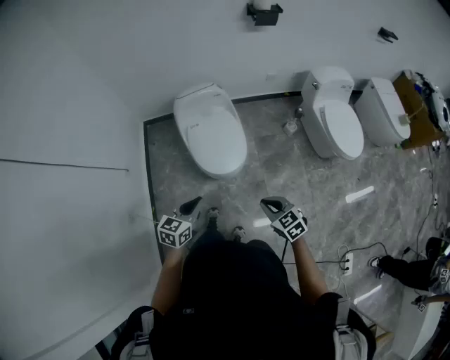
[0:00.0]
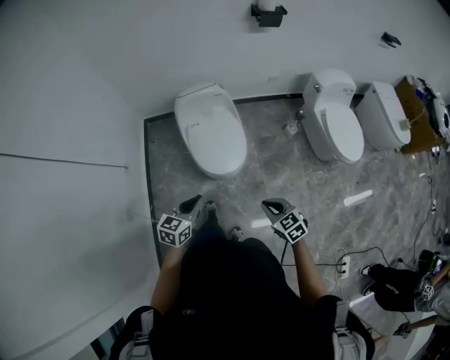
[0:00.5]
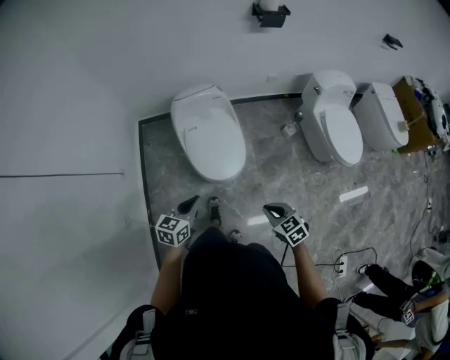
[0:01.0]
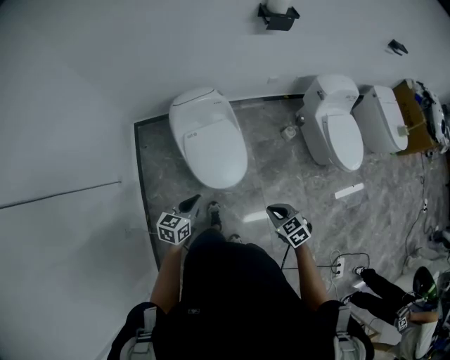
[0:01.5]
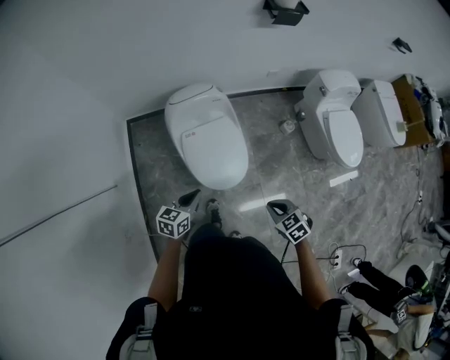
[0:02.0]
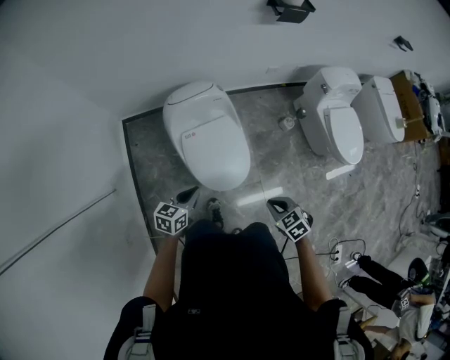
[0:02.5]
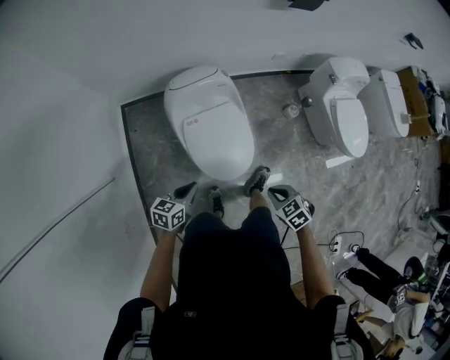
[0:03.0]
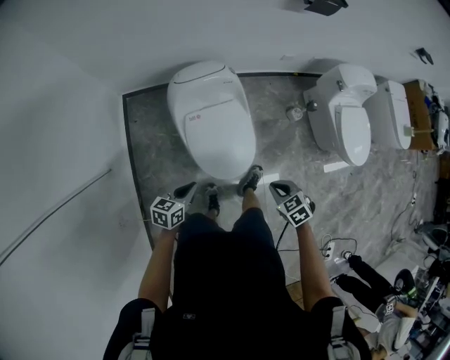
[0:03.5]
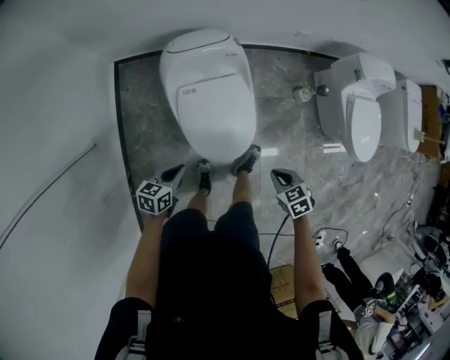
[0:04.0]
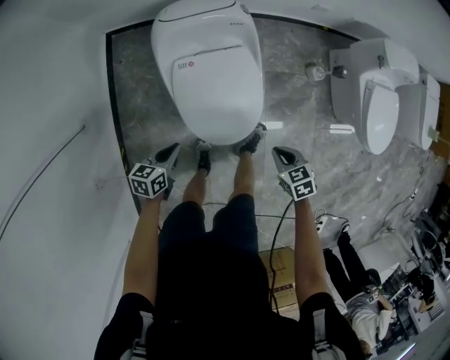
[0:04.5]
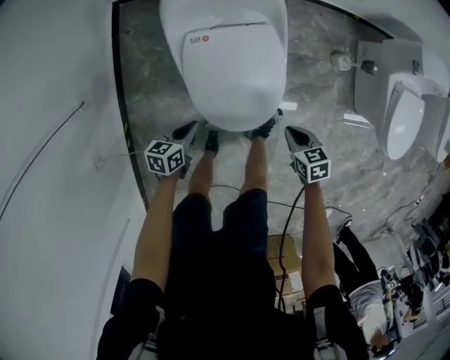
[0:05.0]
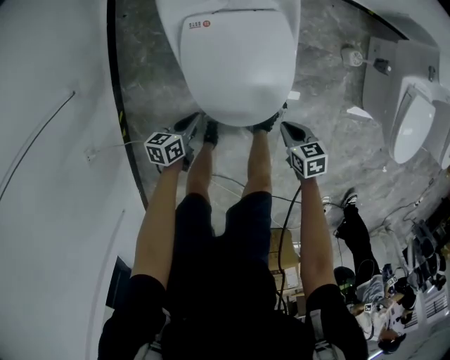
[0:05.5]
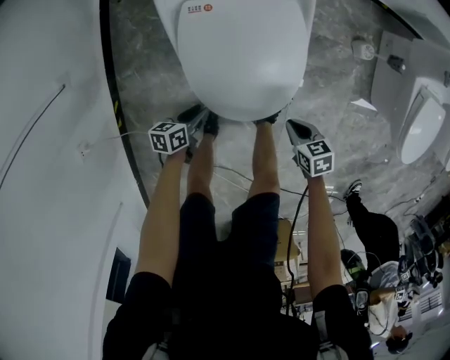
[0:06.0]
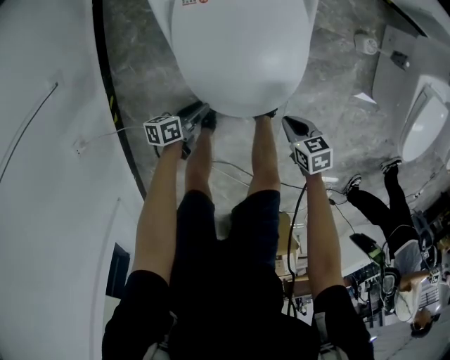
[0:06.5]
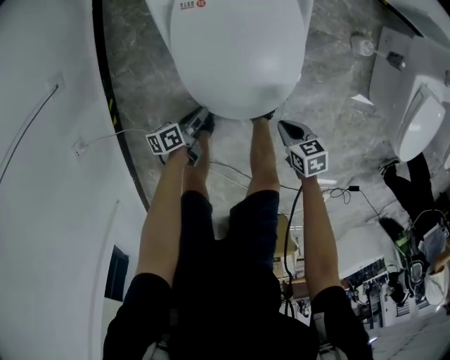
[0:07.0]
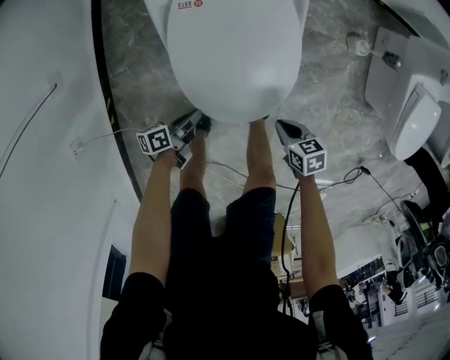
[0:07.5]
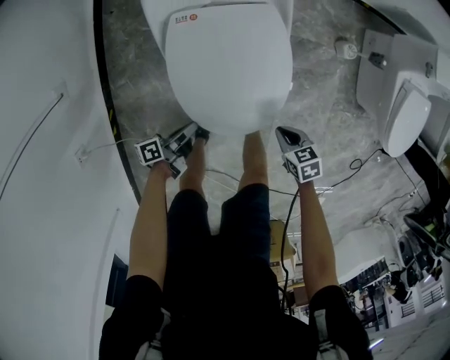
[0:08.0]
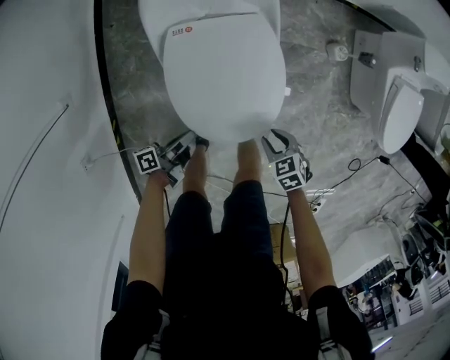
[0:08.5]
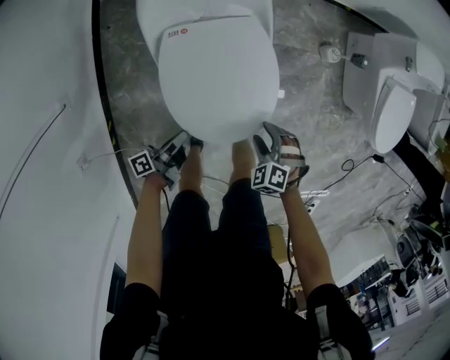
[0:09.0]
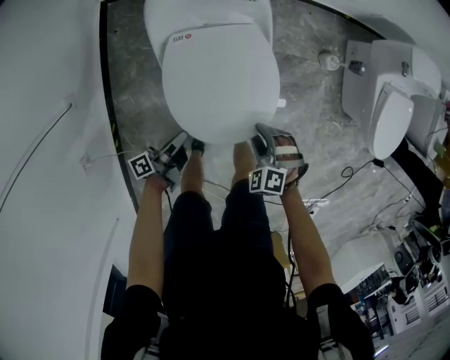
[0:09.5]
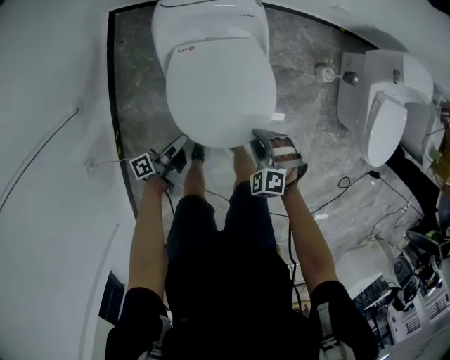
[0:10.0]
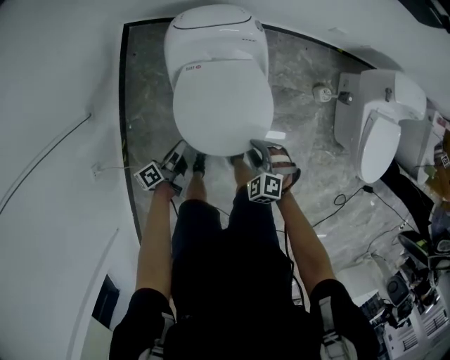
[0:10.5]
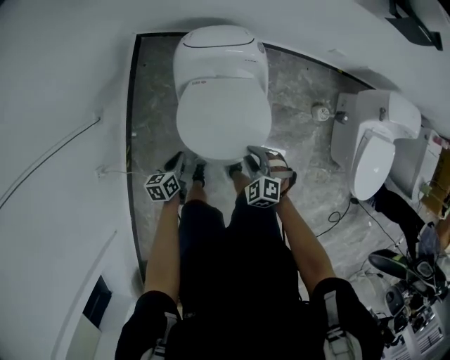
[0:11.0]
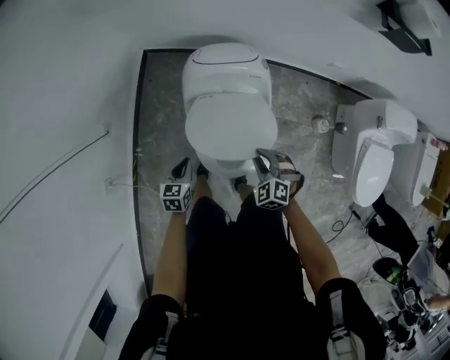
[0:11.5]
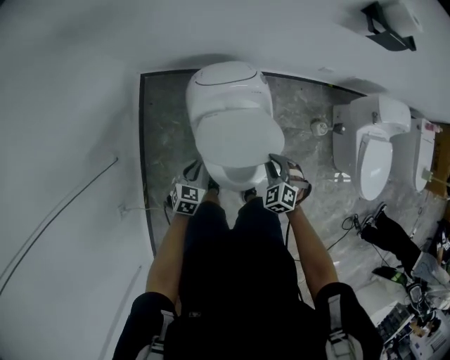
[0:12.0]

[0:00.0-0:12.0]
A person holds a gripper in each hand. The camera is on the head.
0:00.0 to 0:02.0: The grippers both shift forward by some 20 cm.
0:02.0 to 0:04.0: The left gripper moves downward, roughly 15 cm, while the right gripper goes roughly 20 cm downward and forward.
0:04.0 to 0:06.0: The grippers both shift downward by about 30 cm. The left gripper changes its angle by about 30 degrees, and opens up.
0:06.0 to 0:08.0: The left gripper moves upward, roughly 10 cm, changes its angle by about 40 degrees, and closes.
0:08.0 to 0:10.0: The right gripper travels upward, forward and to the left by some 15 cm, rolls counterclockwise, seen from behind, by roughly 60 degrees, and opens. The left gripper heads upward and forward, covering some 15 cm.
0:10.0 to 0:12.0: The left gripper heads forward, upward and to the left, covering about 15 cm, and rolls clockwise, seen from behind, by approximately 90 degrees, while the right gripper travels forward and upward by approximately 20 cm.

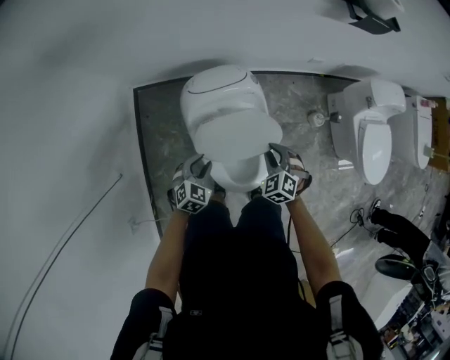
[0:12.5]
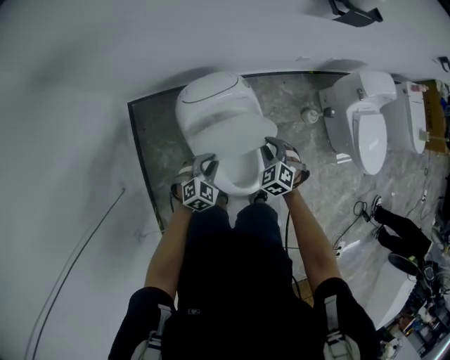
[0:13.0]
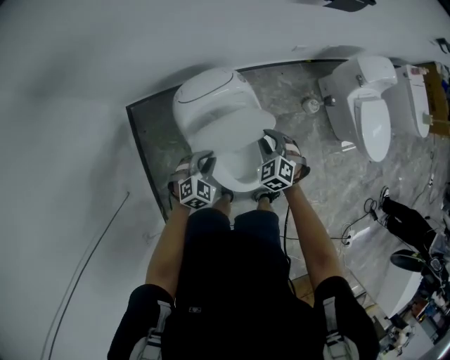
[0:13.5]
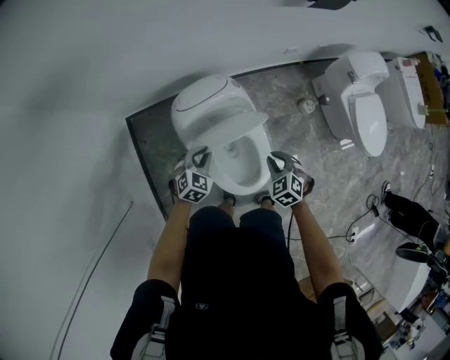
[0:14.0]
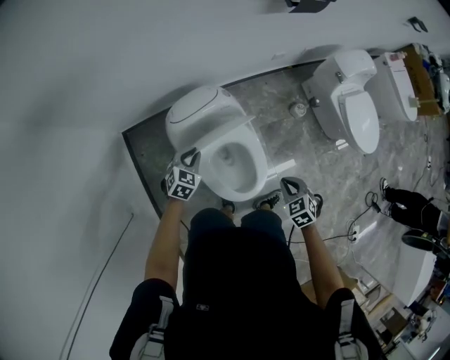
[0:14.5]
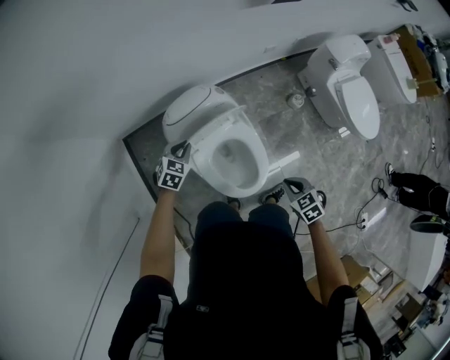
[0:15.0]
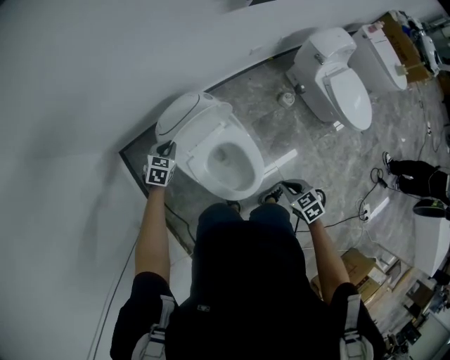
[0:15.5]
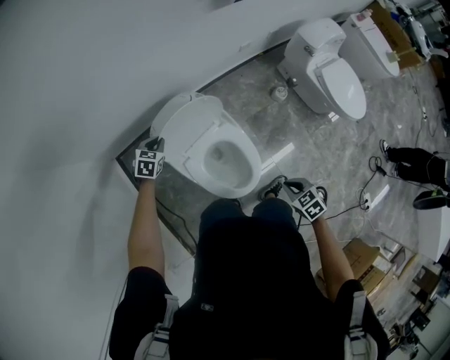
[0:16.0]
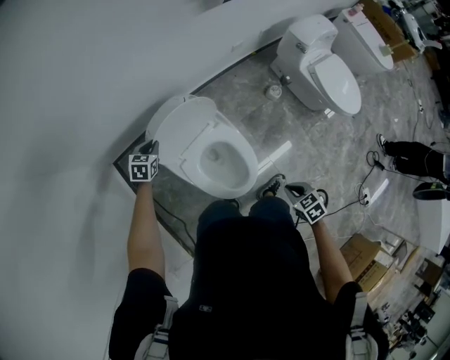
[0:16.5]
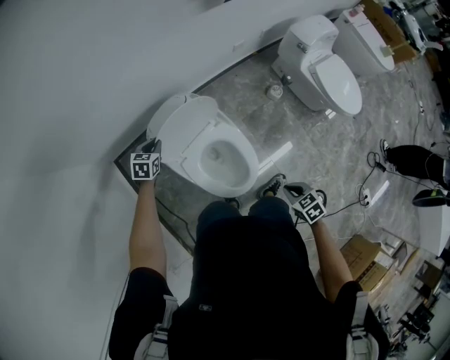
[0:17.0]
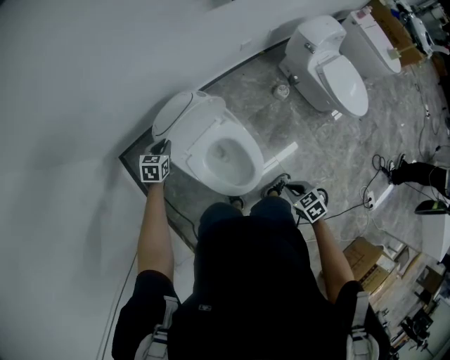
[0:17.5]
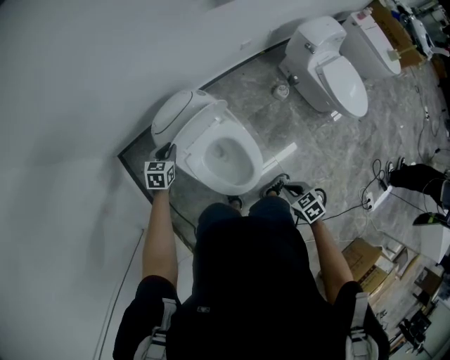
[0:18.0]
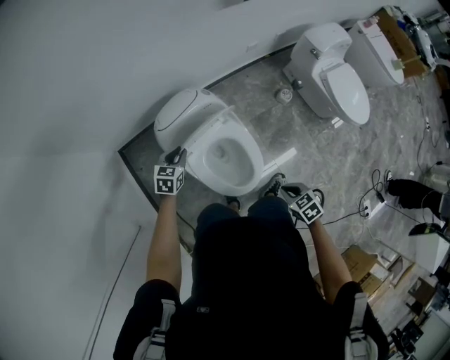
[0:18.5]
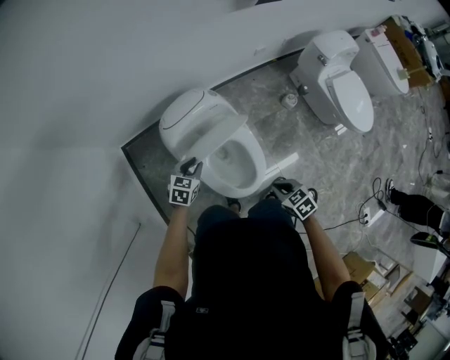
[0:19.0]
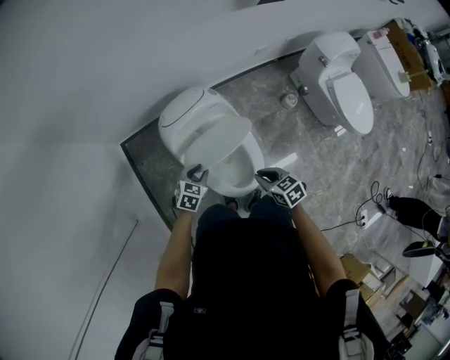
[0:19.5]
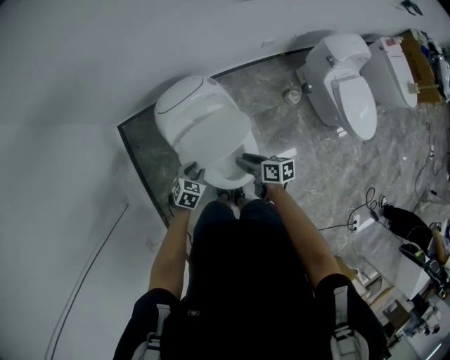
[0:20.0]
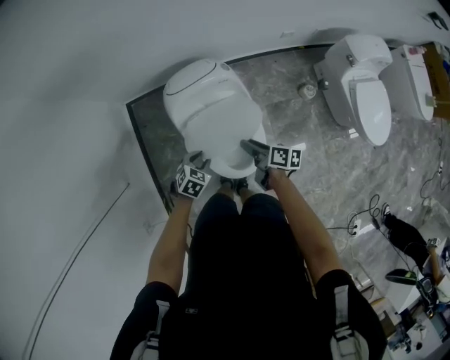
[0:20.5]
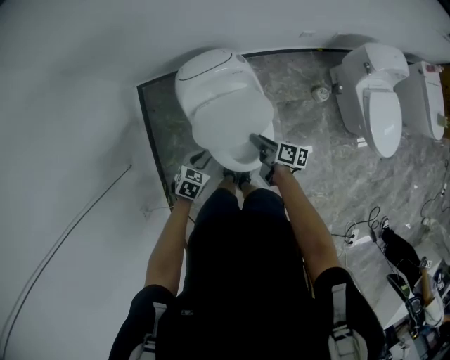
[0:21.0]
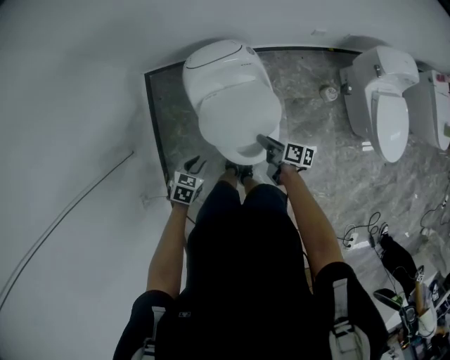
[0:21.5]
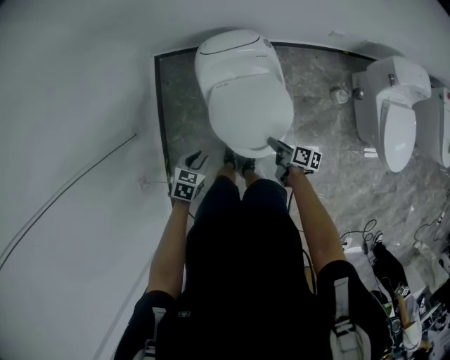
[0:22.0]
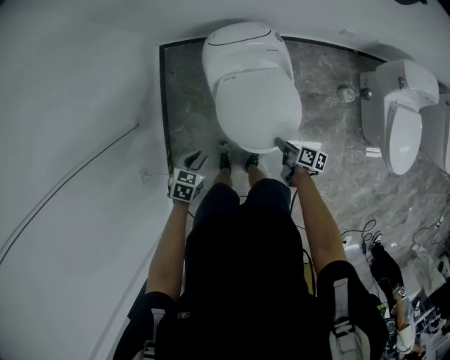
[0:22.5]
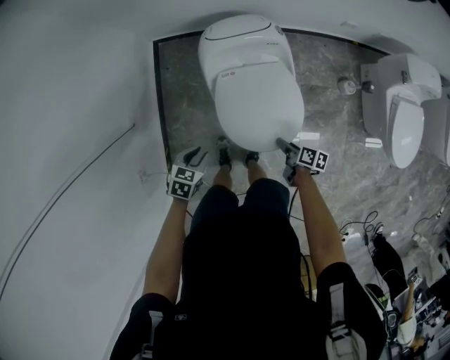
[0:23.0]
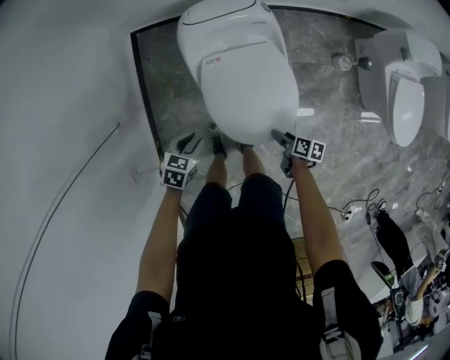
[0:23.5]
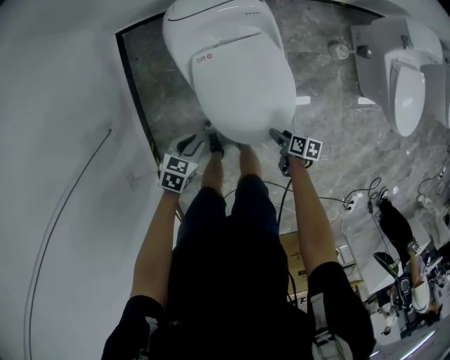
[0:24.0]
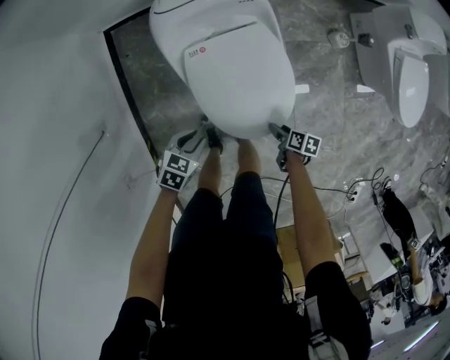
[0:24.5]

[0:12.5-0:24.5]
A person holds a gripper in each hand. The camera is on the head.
0:12.5 to 0:14.5: The left gripper heads forward, covering some 10 cm. The right gripper shifts some 15 cm backward and to the right, and swivels roughly 30 degrees.
0:14.5 to 0:16.5: The left gripper is displaced forward by approximately 10 cm. The right gripper shifts approximately 10 cm backward and to the right, and changes its angle by about 20 degrees.
0:16.5 to 0:18.5: The left gripper heads backward, covering roughly 10 cm.
0:18.5 to 0:20.5: The right gripper travels forward and to the left by approximately 20 cm, tilts its fingers some 30 degrees upward, and opens up; the left gripper goes approximately 15 cm backward and to the right.
0:20.5 to 0:22.5: The left gripper travels backward and to the left by roughly 15 cm, and rotates about 30 degrees. Meanwhile the right gripper moves downward and backward, about 15 cm.
0:22.5 to 0:24.5: The left gripper heads downward, covering about 15 cm, and changes its angle by some 20 degrees, while the right gripper is displaced downward and backward by approximately 20 cm, rotates some 20 degrees, and opens its fingers.

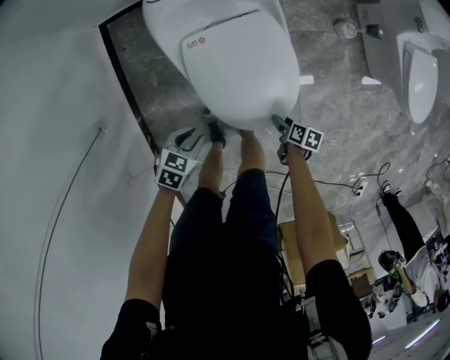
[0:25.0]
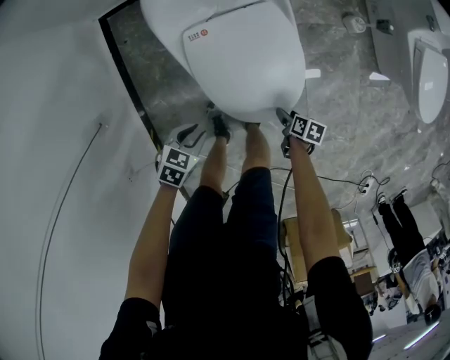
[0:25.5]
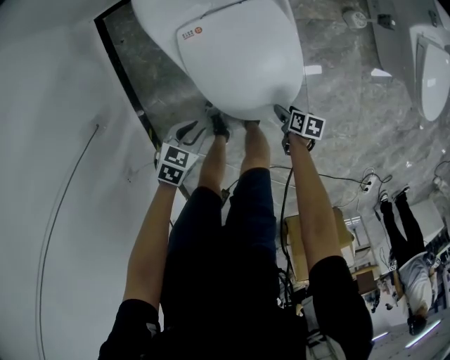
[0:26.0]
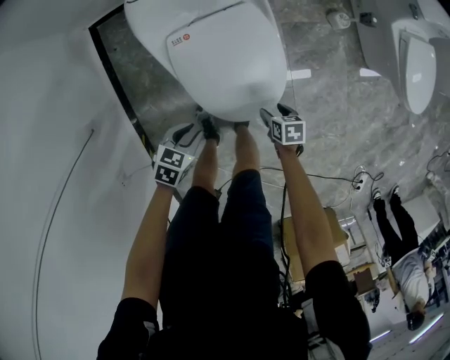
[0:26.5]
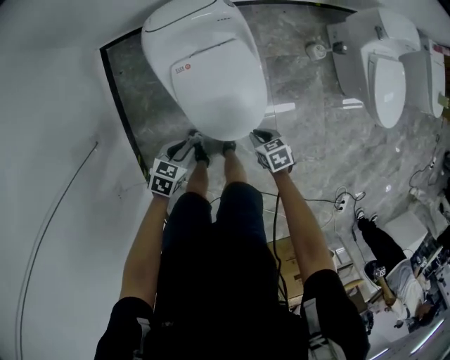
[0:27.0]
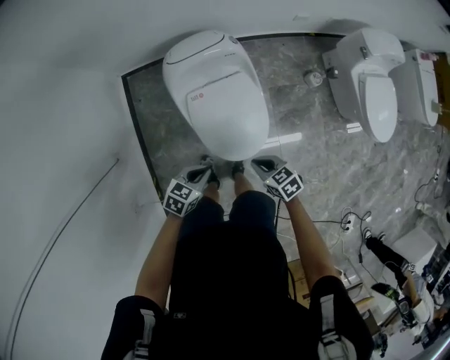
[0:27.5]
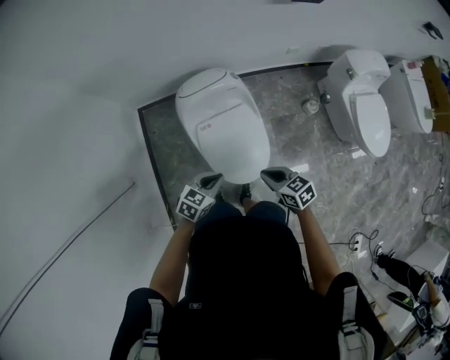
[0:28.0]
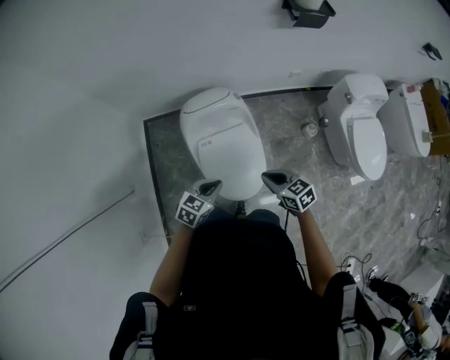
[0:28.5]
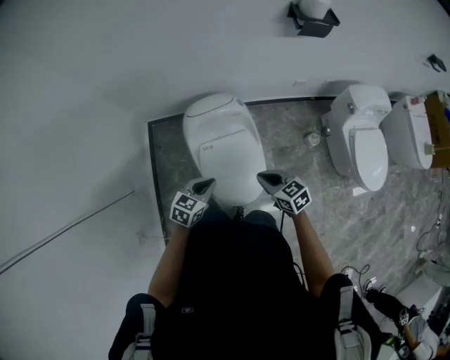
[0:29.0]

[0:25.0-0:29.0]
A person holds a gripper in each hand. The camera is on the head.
0:25.0 to 0:27.0: The right gripper shifts about 15 cm upward, rotates around the line of its fingers by approximately 50 degrees, counterclockwise from behind, and closes up, while the left gripper shifts approximately 5 cm upward.
0:27.0 to 0:29.0: Both grippers travel together upward, approximately 30 cm. The left gripper changes its angle by roughly 20 degrees, and closes. Meanwhile the right gripper changes its angle by approximately 30 degrees.
